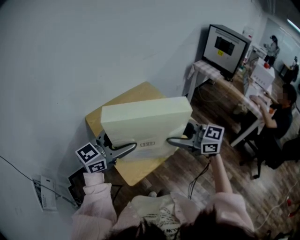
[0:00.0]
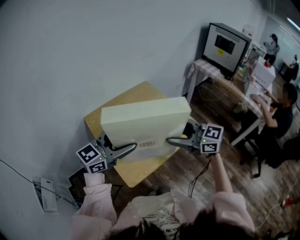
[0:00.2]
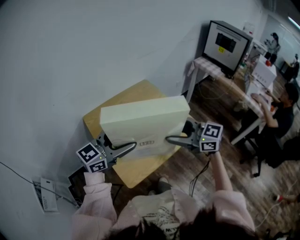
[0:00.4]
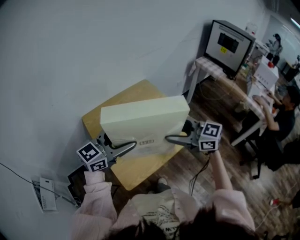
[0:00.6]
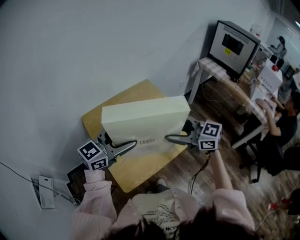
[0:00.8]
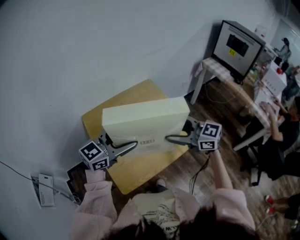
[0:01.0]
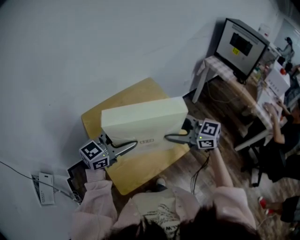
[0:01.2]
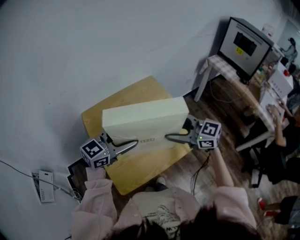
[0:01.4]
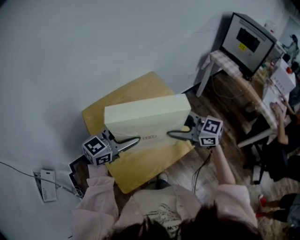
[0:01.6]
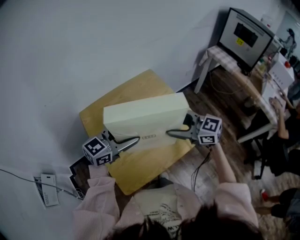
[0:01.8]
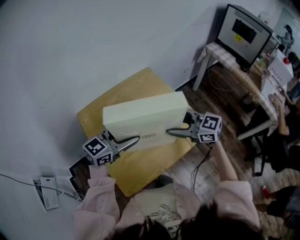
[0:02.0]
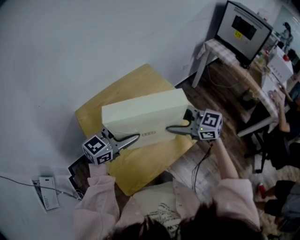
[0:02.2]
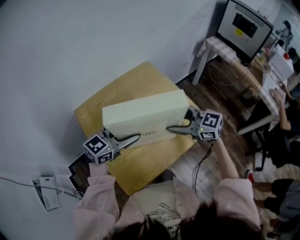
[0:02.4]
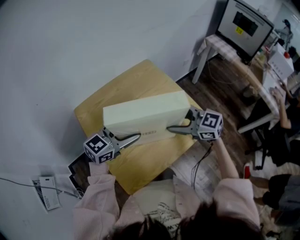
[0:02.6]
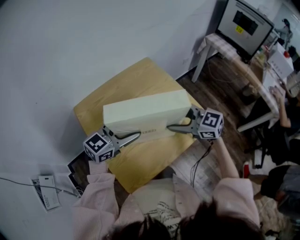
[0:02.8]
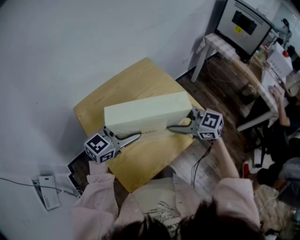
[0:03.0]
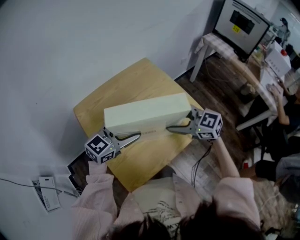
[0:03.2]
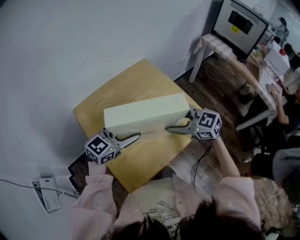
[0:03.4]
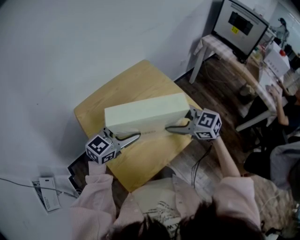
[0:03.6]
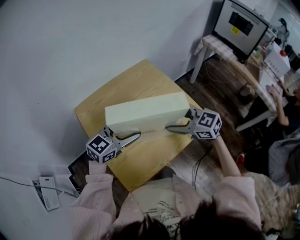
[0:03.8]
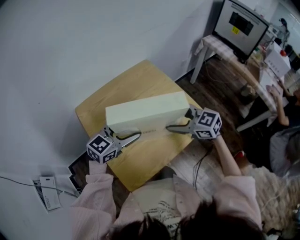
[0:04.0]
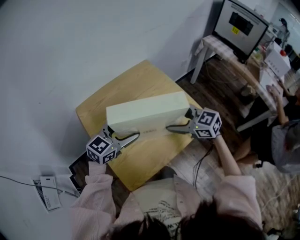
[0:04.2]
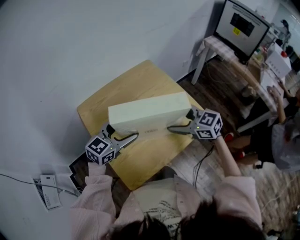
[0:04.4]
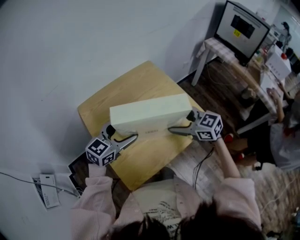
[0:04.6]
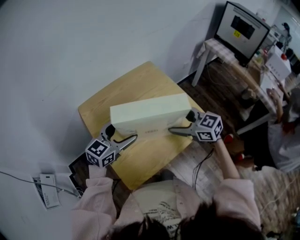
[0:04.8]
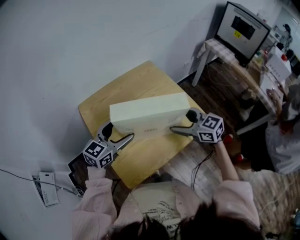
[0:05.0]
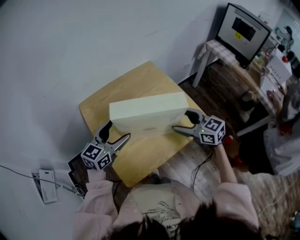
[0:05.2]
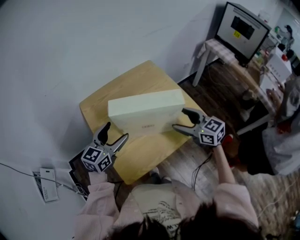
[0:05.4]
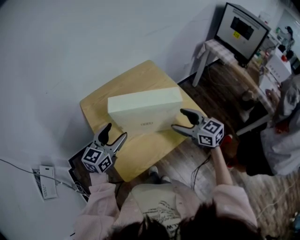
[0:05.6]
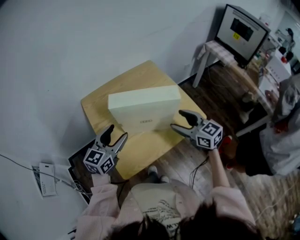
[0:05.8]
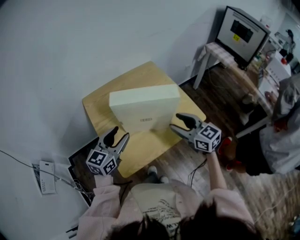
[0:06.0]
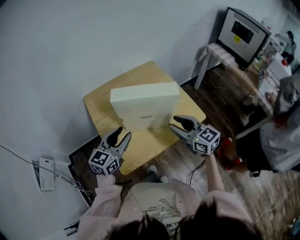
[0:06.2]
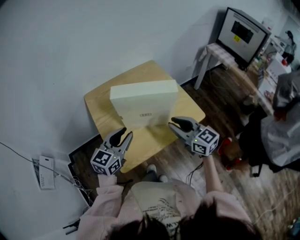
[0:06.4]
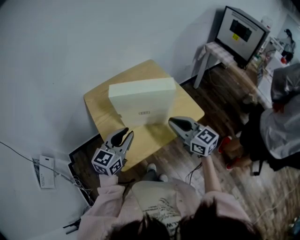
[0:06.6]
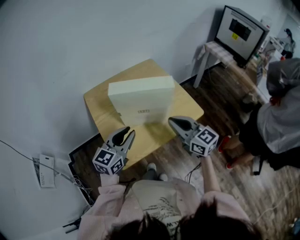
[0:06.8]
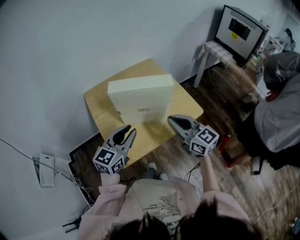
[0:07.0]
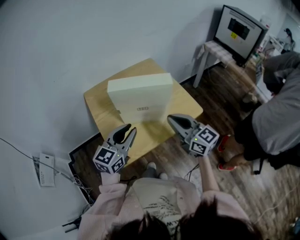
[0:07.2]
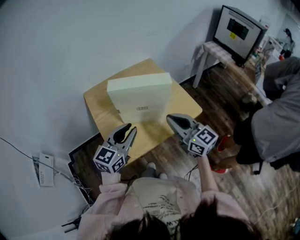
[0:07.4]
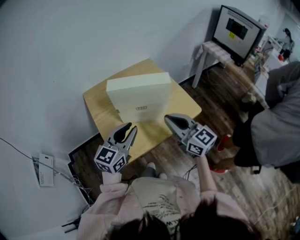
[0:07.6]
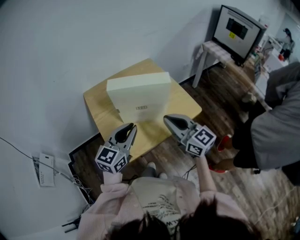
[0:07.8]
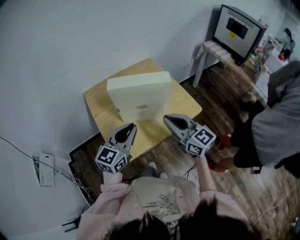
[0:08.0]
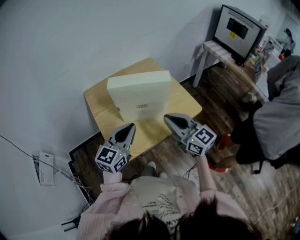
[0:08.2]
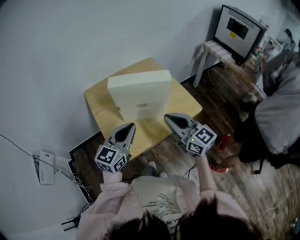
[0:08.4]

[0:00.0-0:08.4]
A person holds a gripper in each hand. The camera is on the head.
0:00.0 to 0:01.4: Both grippers travel together forward and downward, approximately 15 cm.
0:01.4 to 0:02.8: Both grippers move downward, about 10 cm.
0:02.8 to 0:04.2: The grippers stay close to where they were, moving slightly.
0:04.2 to 0:05.6: The left gripper heads to the left, covering about 5 cm, and changes its angle by roughly 20 degrees. The right gripper moves about 5 cm.
0:05.6 to 0:07.0: The right gripper goes some 10 cm backward and upward, and closes, while the left gripper is displaced backward and to the right by roughly 10 cm, and closes its fingers.
0:07.0 to 0:08.4: There are only small adjustments of the grippers.

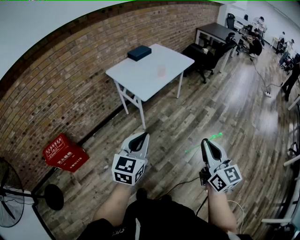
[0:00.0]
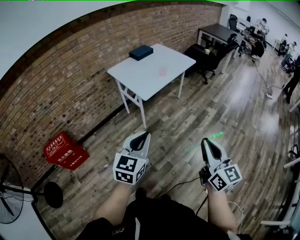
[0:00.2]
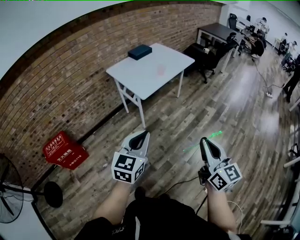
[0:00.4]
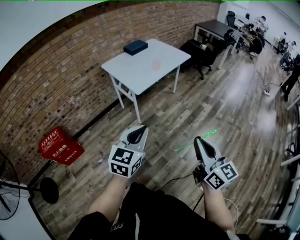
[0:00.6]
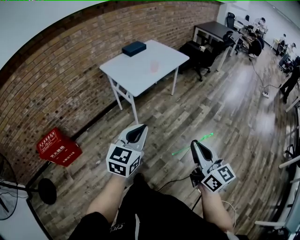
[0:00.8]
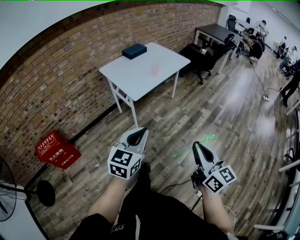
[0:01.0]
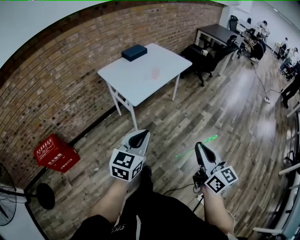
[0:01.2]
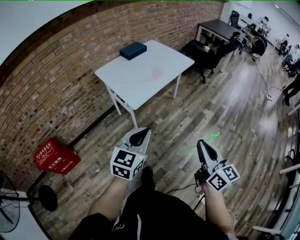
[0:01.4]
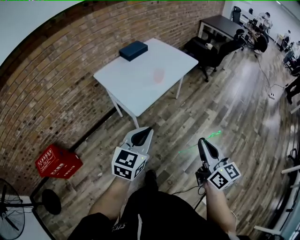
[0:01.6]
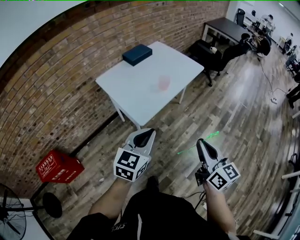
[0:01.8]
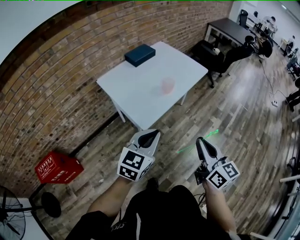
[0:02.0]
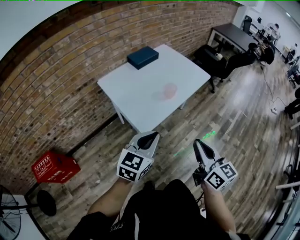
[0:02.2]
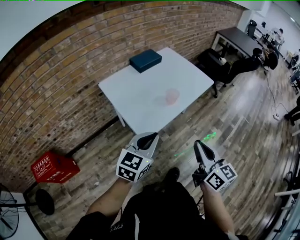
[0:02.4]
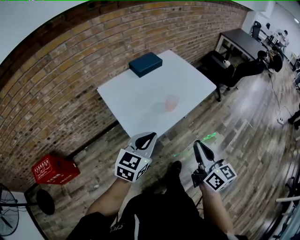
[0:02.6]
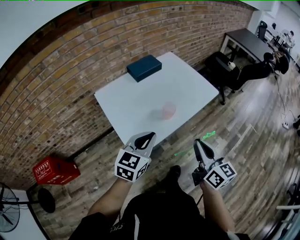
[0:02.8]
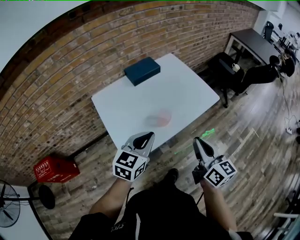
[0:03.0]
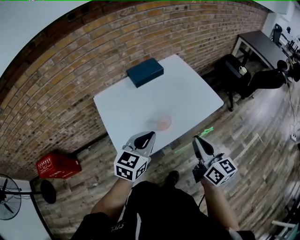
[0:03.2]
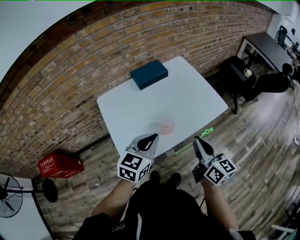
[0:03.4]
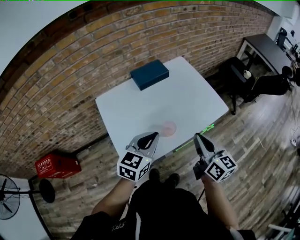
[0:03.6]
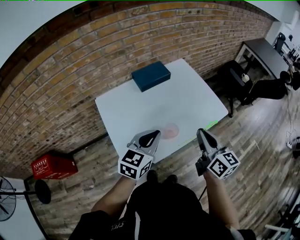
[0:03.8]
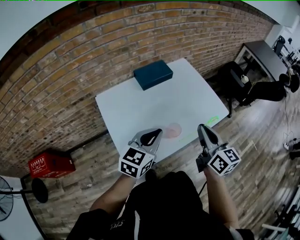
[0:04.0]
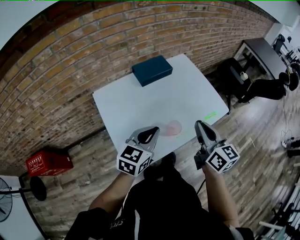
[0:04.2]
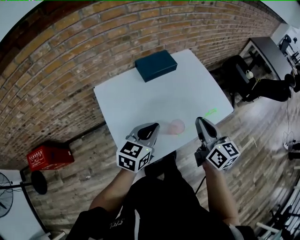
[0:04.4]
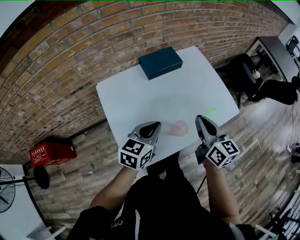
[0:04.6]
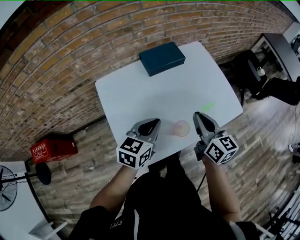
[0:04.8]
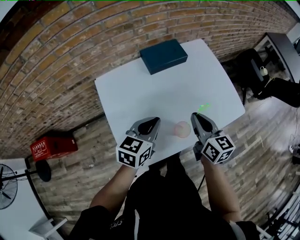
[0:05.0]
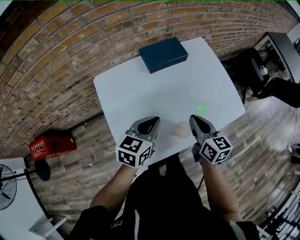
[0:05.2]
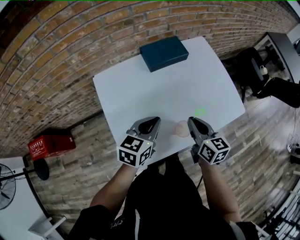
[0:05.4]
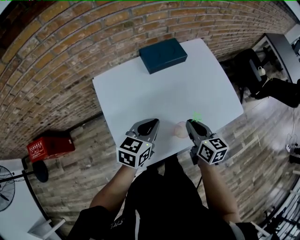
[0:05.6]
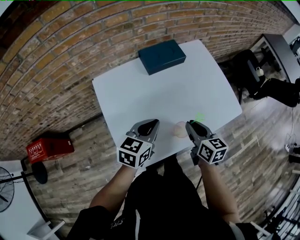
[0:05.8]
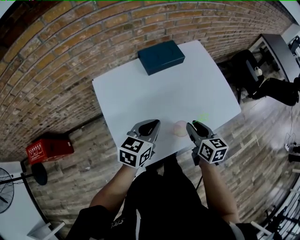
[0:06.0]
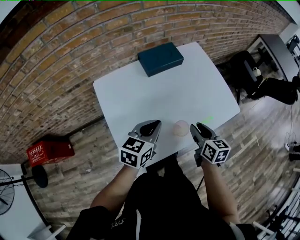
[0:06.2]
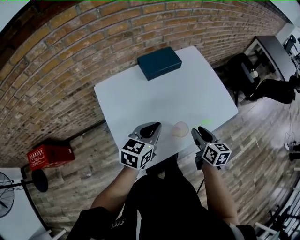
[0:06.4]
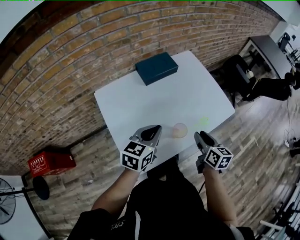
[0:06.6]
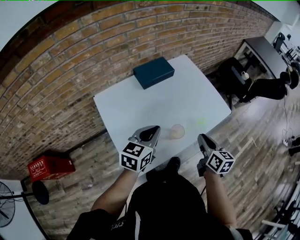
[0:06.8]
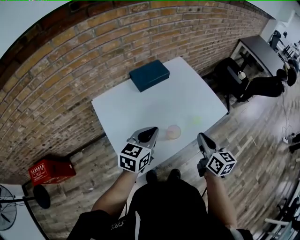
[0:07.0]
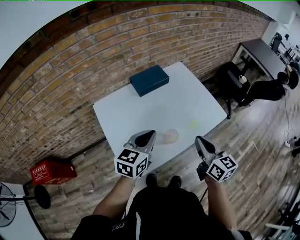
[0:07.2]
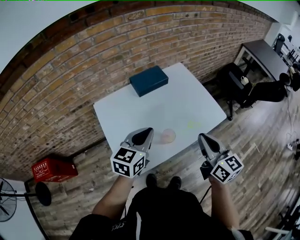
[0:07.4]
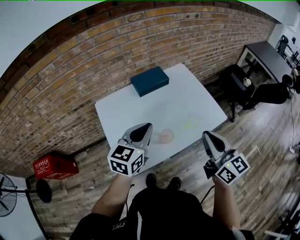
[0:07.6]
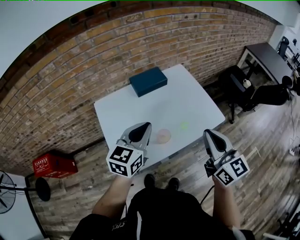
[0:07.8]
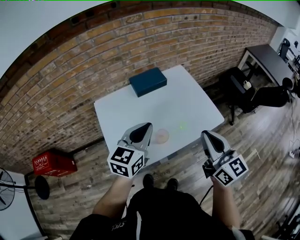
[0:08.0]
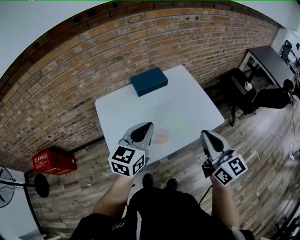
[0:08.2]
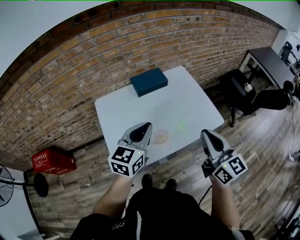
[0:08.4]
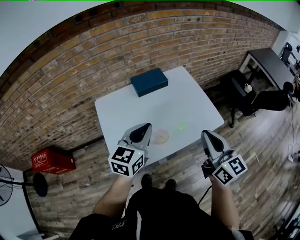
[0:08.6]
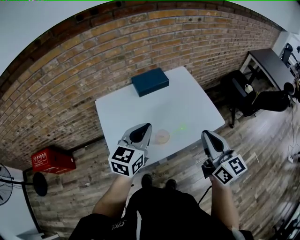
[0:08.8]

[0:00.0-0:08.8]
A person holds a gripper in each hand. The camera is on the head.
0:00.0 to 0:01.4: Both grippers travel together forward, about 15 cm.
0:01.4 to 0:03.0: The two grippers travel together, forward, about 50 cm.
0:03.0 to 0:04.4: The right gripper goes approximately 20 cm forward. The left gripper is displaced forward and to the left by about 15 cm.
0:04.4 to 0:05.8: The left gripper moves downward, roughly 5 cm. The right gripper heads downward, covering approximately 15 cm, and swivels about 20 degrees.
0:05.8 to 0:07.4: The right gripper heads upward, to the right and backward, covering approximately 20 cm, and rotates about 20 degrees, while the left gripper goes approximately 10 cm upward.
0:07.4 to 0:08.8: The right gripper ends up approximately 5 cm from where it was.

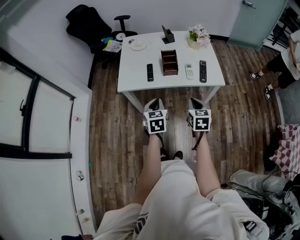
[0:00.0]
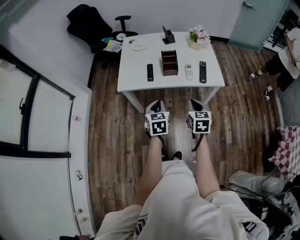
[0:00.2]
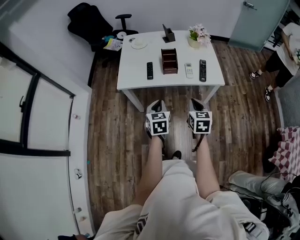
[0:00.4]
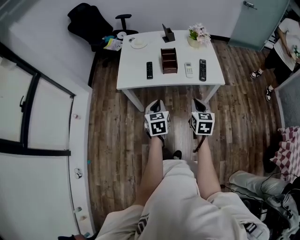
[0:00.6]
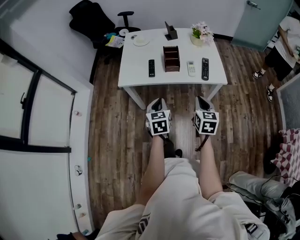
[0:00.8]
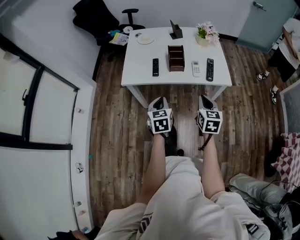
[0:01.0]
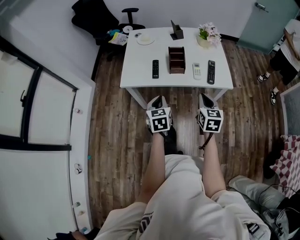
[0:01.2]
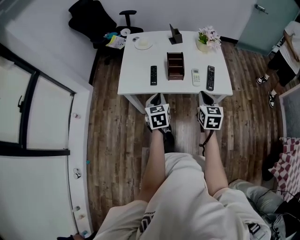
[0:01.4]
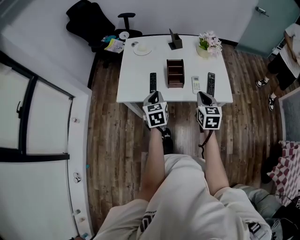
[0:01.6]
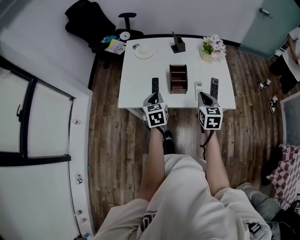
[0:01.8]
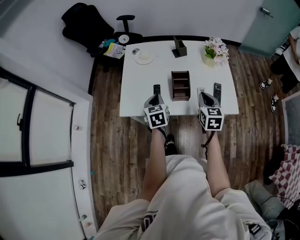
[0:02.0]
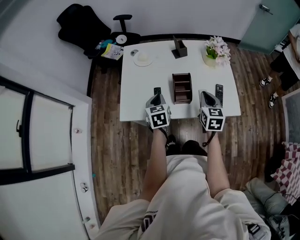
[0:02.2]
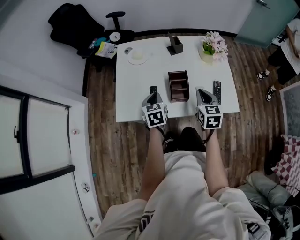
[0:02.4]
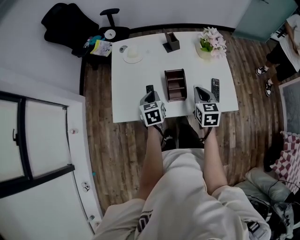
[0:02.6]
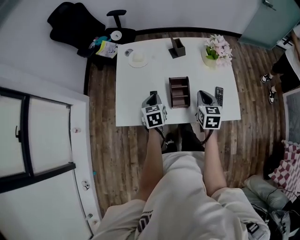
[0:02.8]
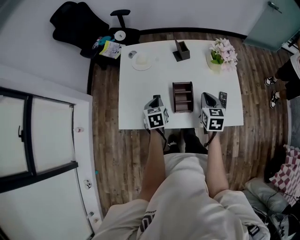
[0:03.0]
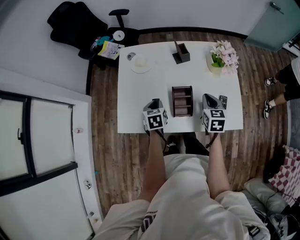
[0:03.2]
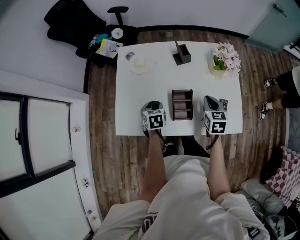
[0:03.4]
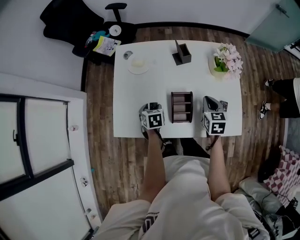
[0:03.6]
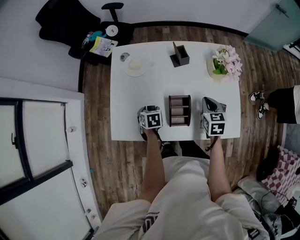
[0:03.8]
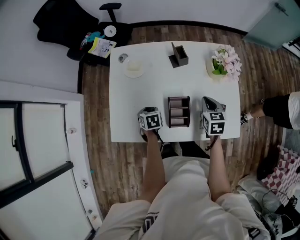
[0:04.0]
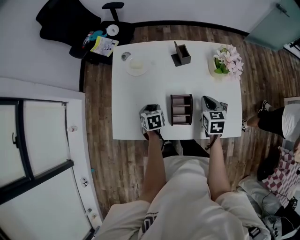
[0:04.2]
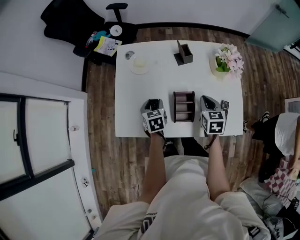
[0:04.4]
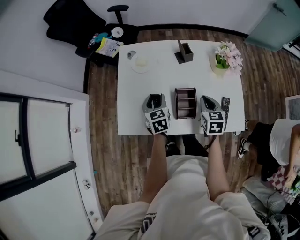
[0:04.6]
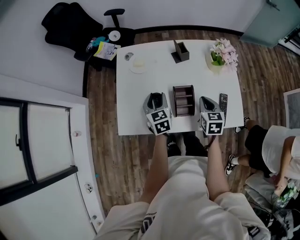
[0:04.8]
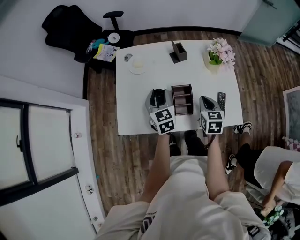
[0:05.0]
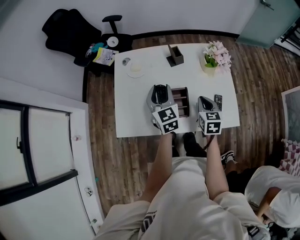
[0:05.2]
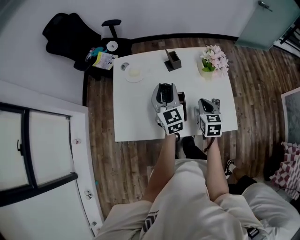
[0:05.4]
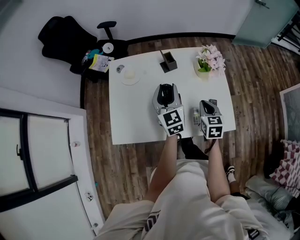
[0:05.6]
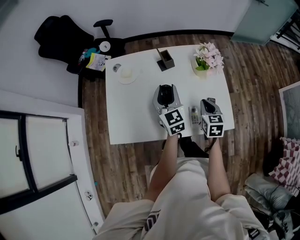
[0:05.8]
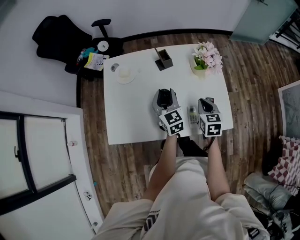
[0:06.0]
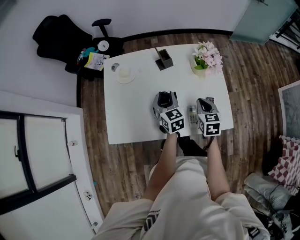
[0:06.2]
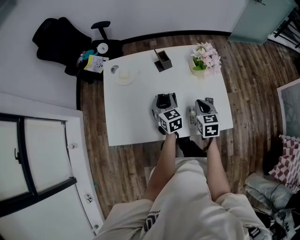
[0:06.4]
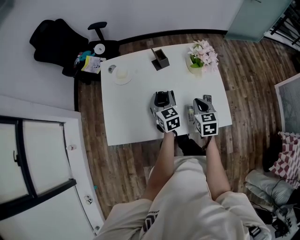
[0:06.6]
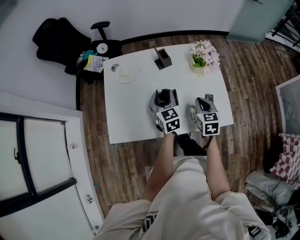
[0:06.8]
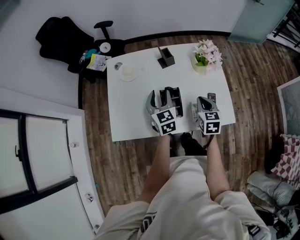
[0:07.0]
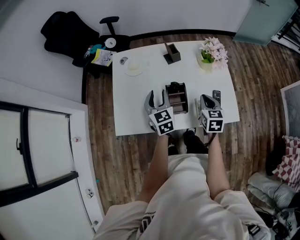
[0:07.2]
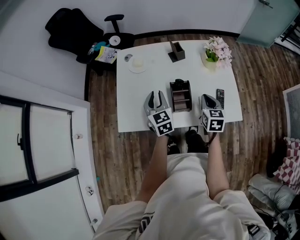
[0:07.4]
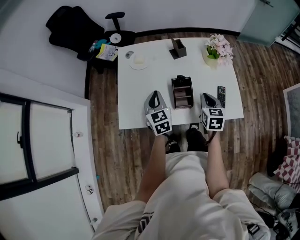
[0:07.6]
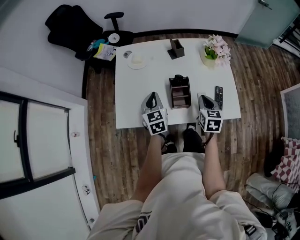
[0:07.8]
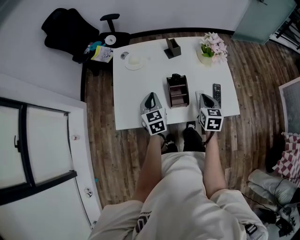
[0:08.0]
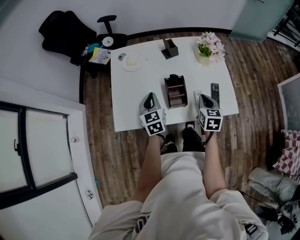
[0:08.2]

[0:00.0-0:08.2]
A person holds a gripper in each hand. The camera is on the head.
0:00.0 to 0:01.6: The two grippers go about 15 cm forward.
0:01.6 to 0:03.2: The right gripper shifts approximately 20 cm forward, while the left gripper is displaced forward and downward by about 20 cm.
0:03.2 to 0:05.0: The left gripper shifts approximately 10 cm upward, swivels some 20 degrees, and opens.
0:05.0 to 0:06.6: The left gripper heads to the right, covering about 10 cm, and reaches about 10 cm upward, then returns; the right gripper heads to the right, covering roughly 5 cm.
0:06.6 to 0:08.2: The right gripper is displaced backward by some 5 cm; the left gripper travels to the left and backward by roughly 15 cm, and closes its fingers.
